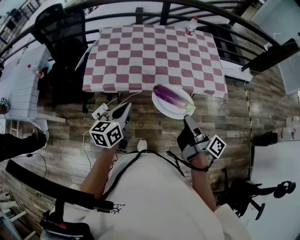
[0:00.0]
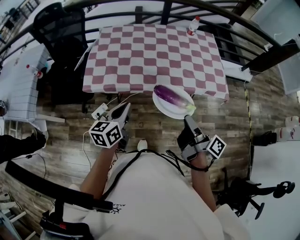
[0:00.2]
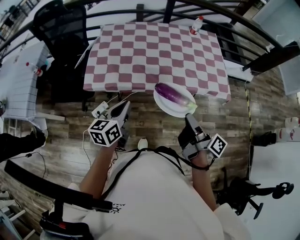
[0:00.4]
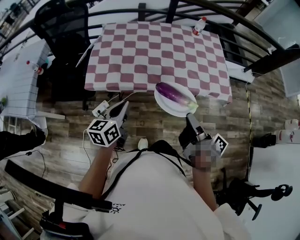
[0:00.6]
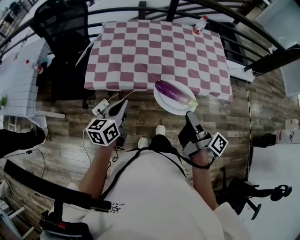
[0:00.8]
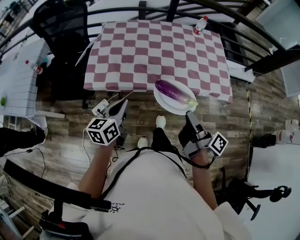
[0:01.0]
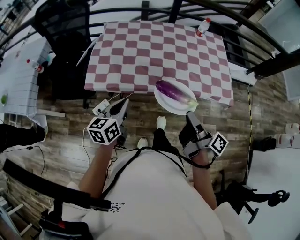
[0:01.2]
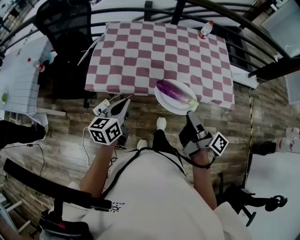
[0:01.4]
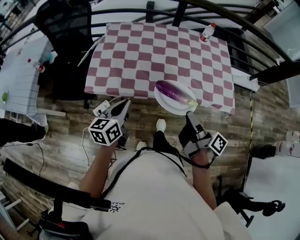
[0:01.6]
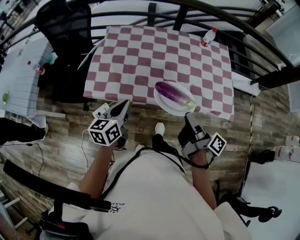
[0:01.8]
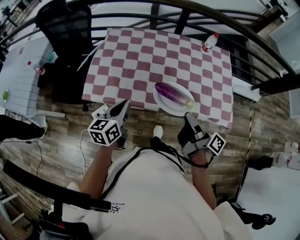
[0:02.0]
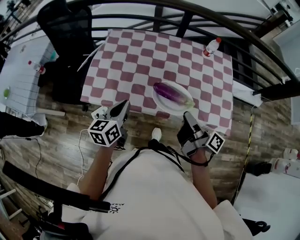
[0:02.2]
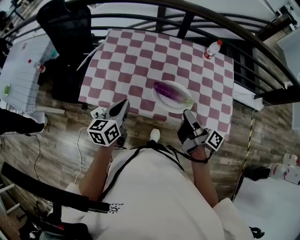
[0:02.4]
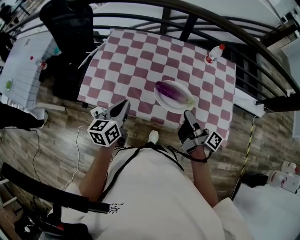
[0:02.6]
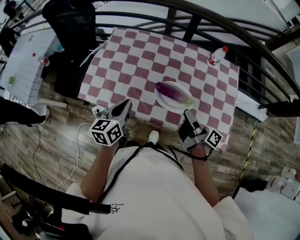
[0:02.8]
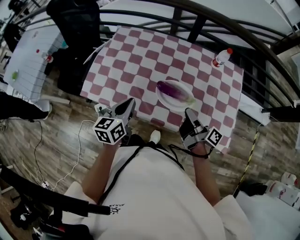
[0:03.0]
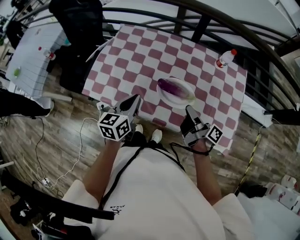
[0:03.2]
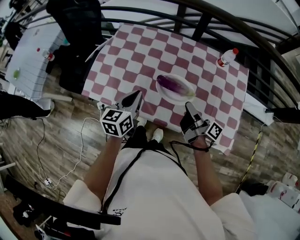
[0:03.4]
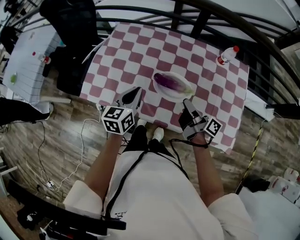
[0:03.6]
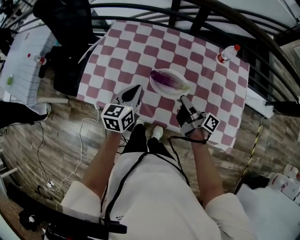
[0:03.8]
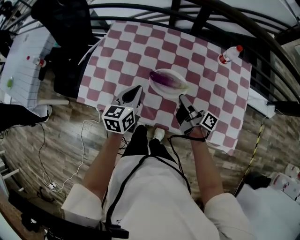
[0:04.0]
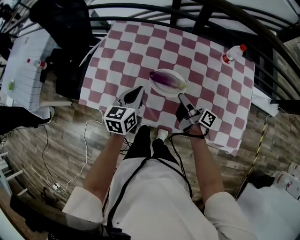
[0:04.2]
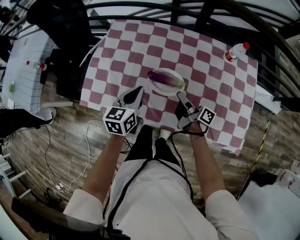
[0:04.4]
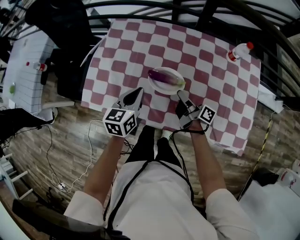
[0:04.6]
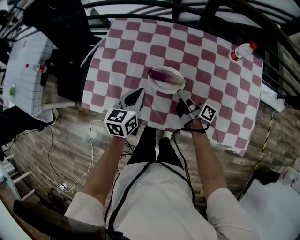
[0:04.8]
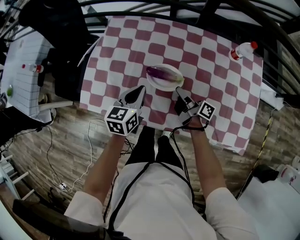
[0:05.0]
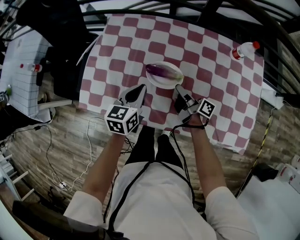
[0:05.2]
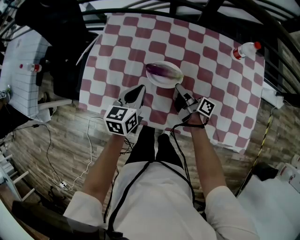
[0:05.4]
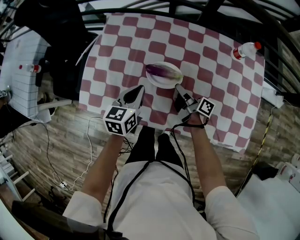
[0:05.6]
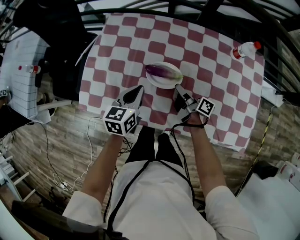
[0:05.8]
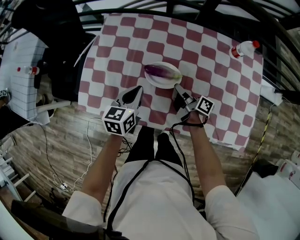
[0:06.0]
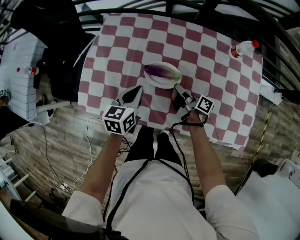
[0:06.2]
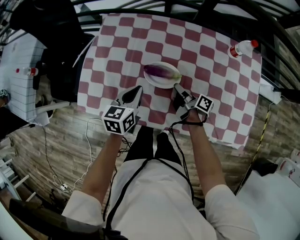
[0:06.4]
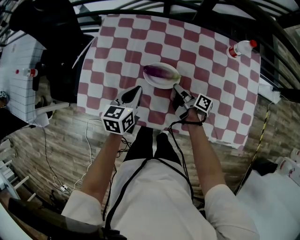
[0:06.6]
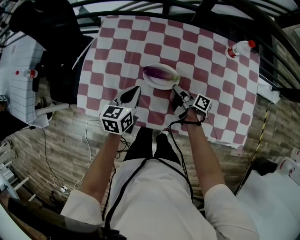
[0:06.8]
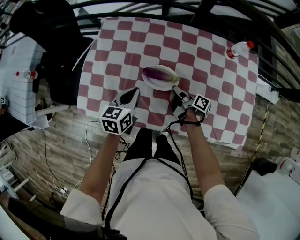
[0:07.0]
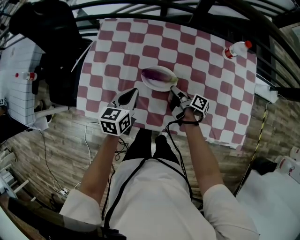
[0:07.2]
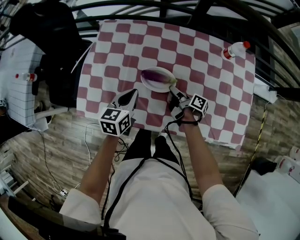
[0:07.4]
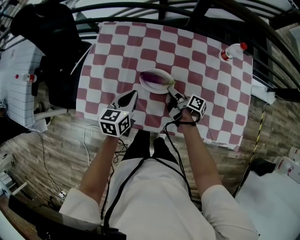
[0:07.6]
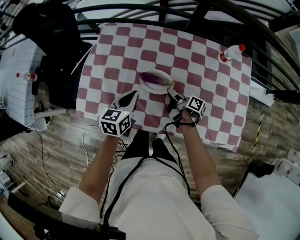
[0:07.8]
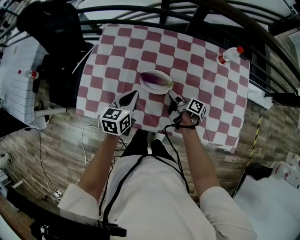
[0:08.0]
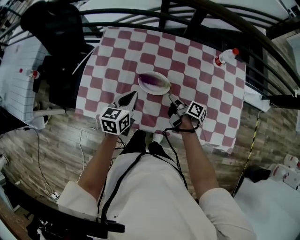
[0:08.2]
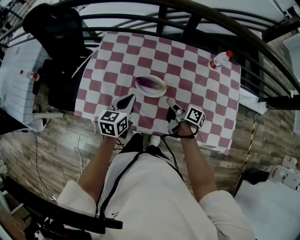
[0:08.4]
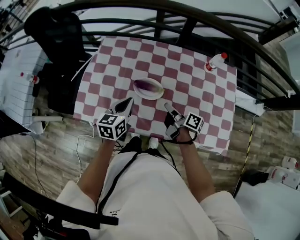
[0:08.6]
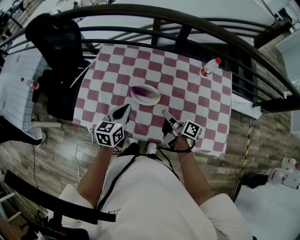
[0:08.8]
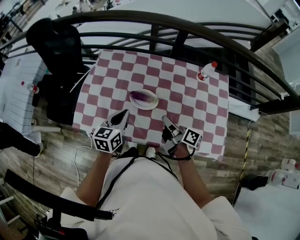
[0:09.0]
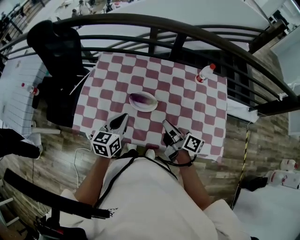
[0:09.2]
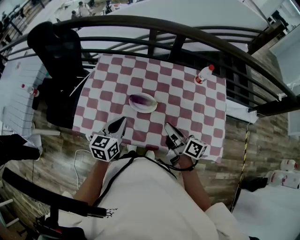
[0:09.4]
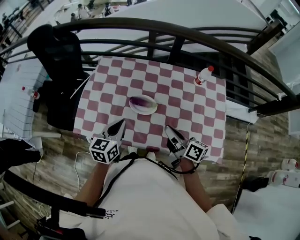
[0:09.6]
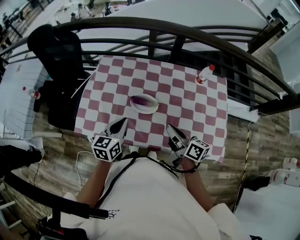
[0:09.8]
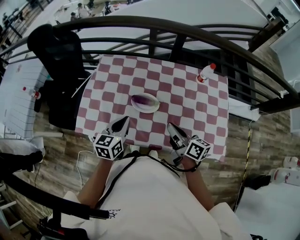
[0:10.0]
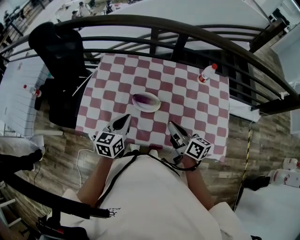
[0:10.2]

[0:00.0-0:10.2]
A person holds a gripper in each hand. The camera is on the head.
0:00.0 to 0:01.4: The left gripper changes place by some 10 cm.
0:01.4 to 0:03.0: The left gripper changes place by some 20 cm.
0:03.0 to 0:04.4: The left gripper shifts by roughly 15 cm.
0:04.4 to 0:05.8: The left gripper changes place by about 5 cm.
0:07.2 to 0:08.8: The left gripper is displaced upward by roughly 10 cm.

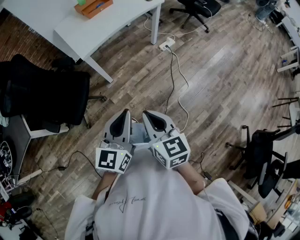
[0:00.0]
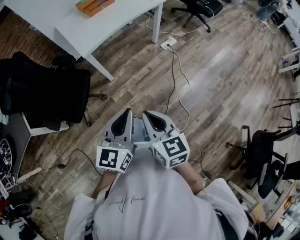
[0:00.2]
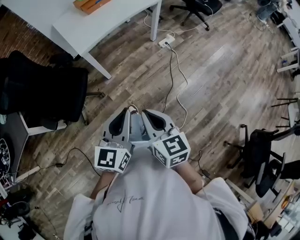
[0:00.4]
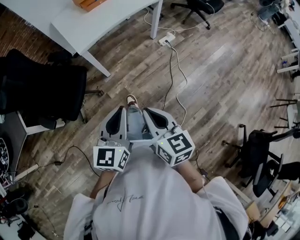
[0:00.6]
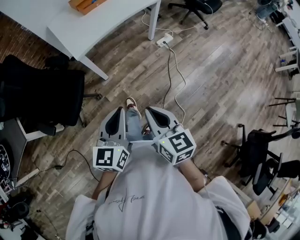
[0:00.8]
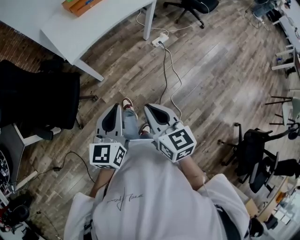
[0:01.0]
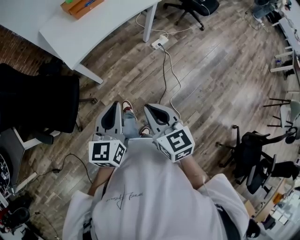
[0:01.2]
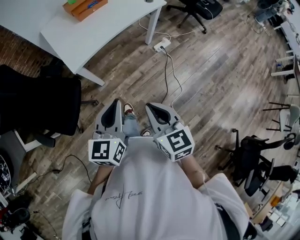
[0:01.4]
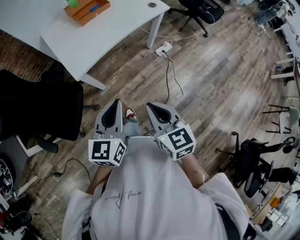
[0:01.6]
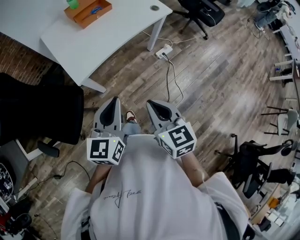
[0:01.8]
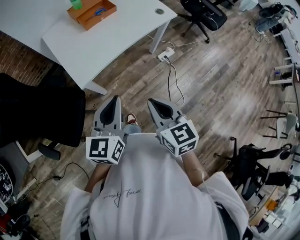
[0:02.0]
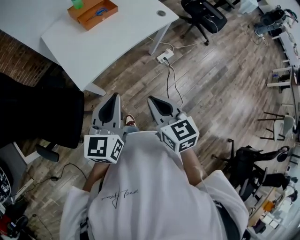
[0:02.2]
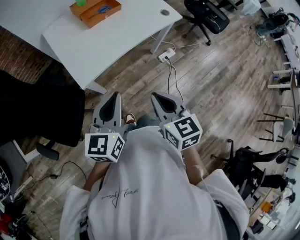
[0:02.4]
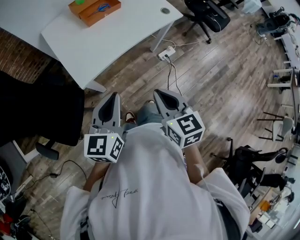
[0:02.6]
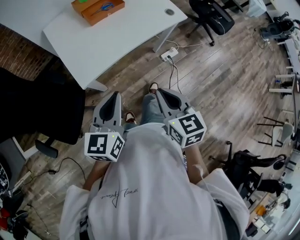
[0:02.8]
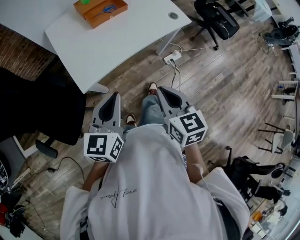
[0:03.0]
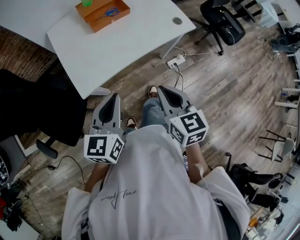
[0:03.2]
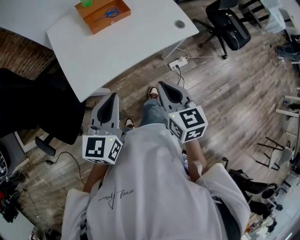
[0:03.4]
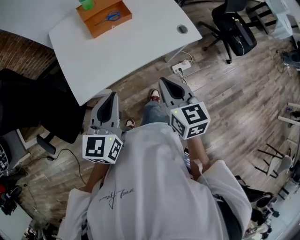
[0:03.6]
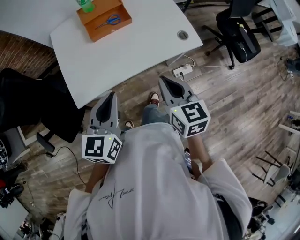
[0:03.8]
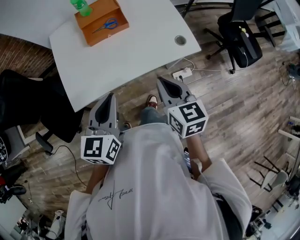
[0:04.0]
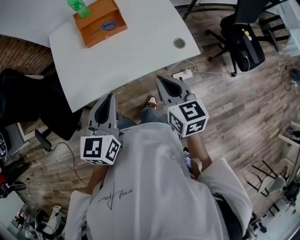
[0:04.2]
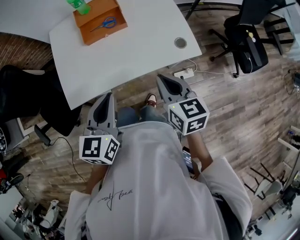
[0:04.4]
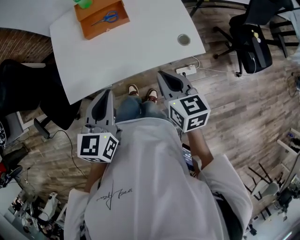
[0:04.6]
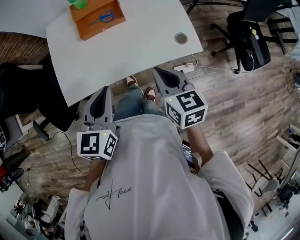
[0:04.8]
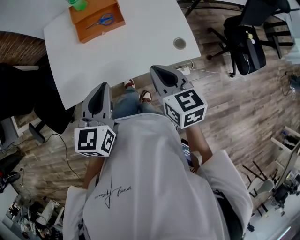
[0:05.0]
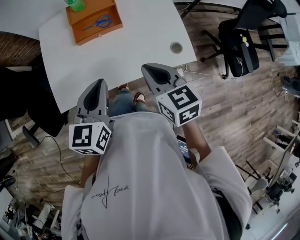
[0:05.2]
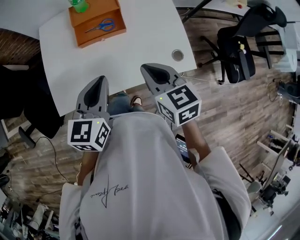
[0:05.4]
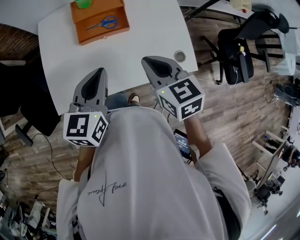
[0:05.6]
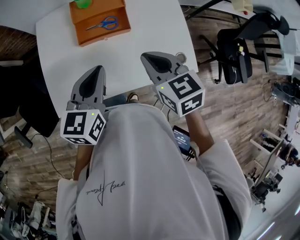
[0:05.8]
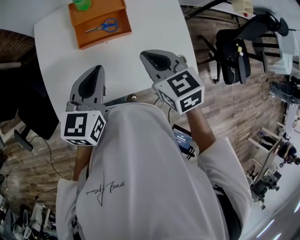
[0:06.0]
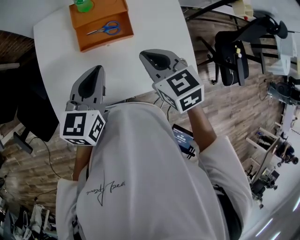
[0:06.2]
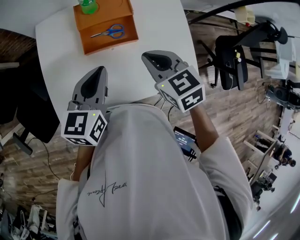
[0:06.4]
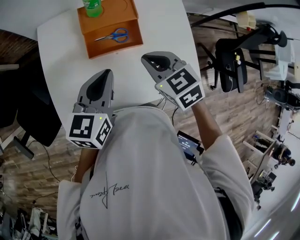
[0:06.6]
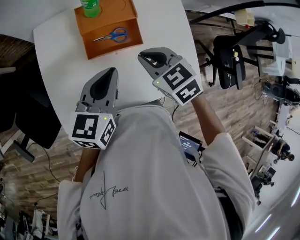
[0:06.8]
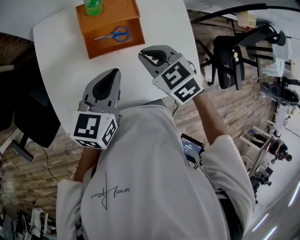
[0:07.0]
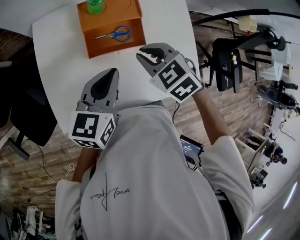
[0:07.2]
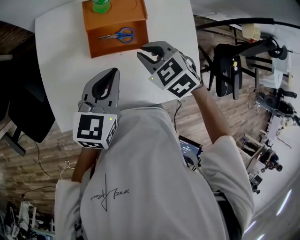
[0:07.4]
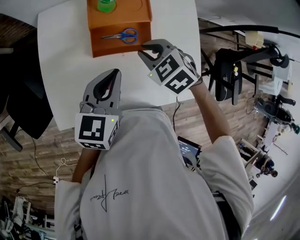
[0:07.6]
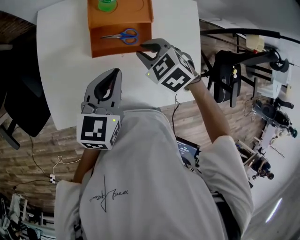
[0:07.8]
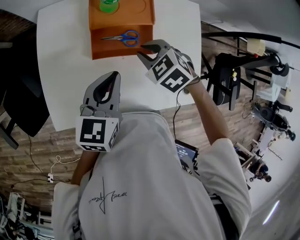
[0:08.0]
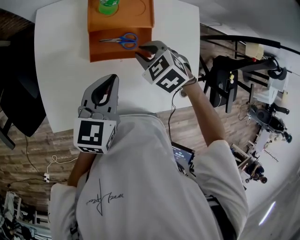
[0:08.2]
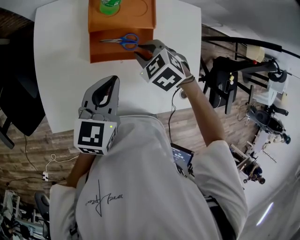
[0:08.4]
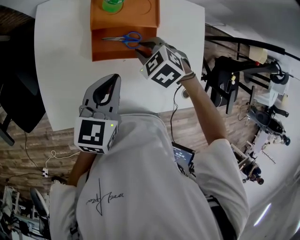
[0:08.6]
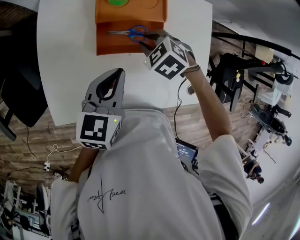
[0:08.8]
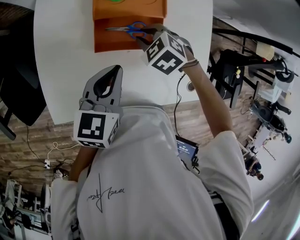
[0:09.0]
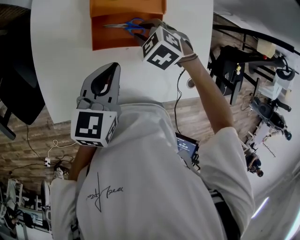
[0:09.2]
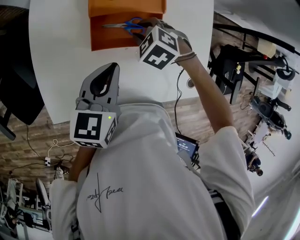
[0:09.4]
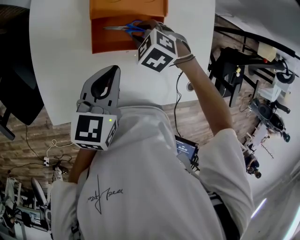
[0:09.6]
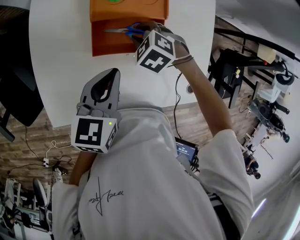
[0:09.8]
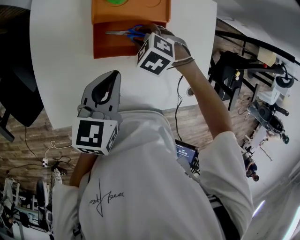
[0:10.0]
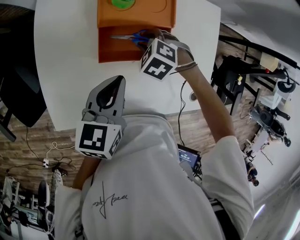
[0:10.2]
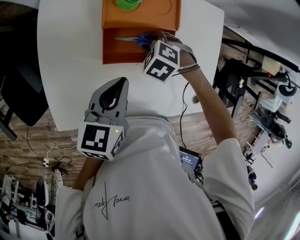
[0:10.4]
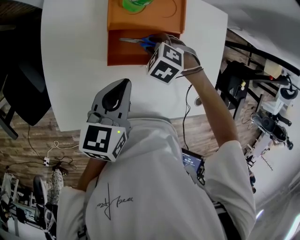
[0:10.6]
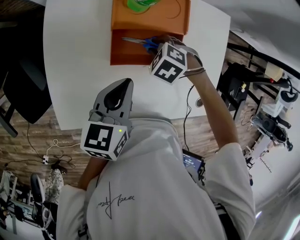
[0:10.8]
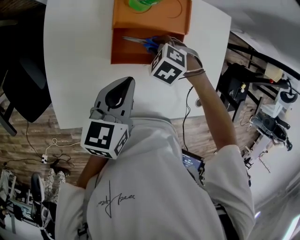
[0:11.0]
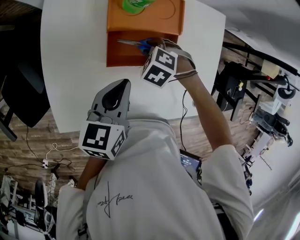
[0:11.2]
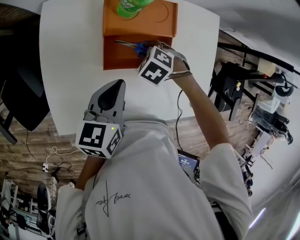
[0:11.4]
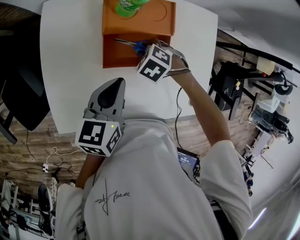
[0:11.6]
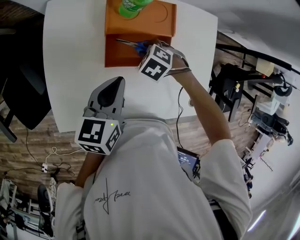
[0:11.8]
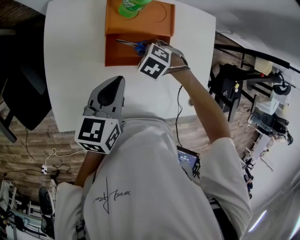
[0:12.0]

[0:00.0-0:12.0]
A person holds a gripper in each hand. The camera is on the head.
0:00.0 to 0:01.6: Both grippers move forward, some 25 cm.
0:01.6 to 0:03.0: Both grippers move forward, about 15 cm.
0:03.0 to 0:04.4: The grippers both shift forward and to the right by roughly 25 cm. The left gripper swivels approximately 20 degrees.
0:04.4 to 0:06.0: Both grippers travel together forward, about 20 cm. The right gripper swivels about 30 degrees.
0:06.0 to 0:07.6: The left gripper heads forward, covering approximately 5 cm, while the right gripper shifts some 15 cm forward, downward and to the left, and swivels about 40 degrees.
0:07.6 to 0:09.0: The right gripper goes approximately 10 cm downward and forward.
0:09.0 to 0:10.4: The right gripper travels downward by roughly 5 cm.
0:10.4 to 0:12.0: The grippers make only small movements.

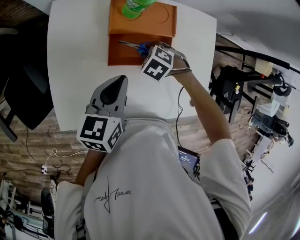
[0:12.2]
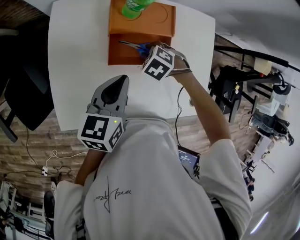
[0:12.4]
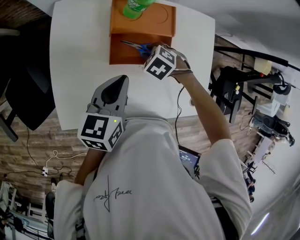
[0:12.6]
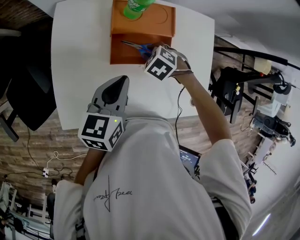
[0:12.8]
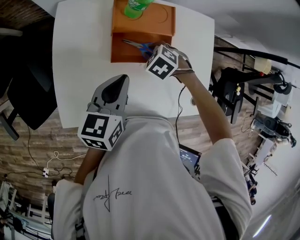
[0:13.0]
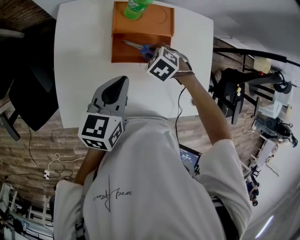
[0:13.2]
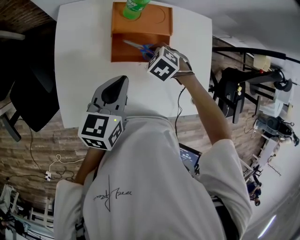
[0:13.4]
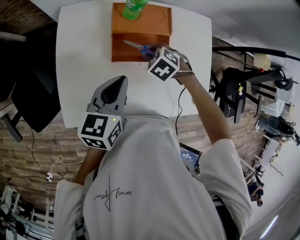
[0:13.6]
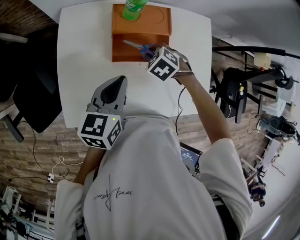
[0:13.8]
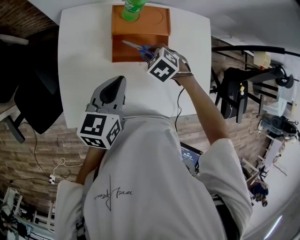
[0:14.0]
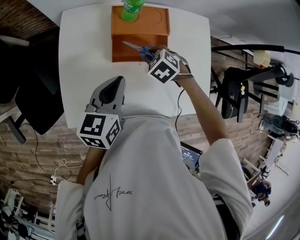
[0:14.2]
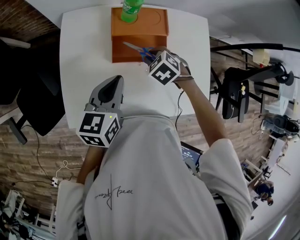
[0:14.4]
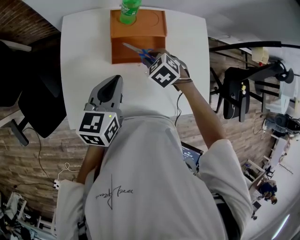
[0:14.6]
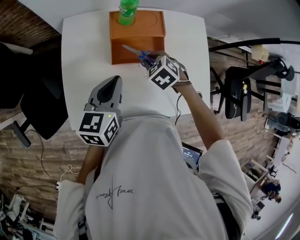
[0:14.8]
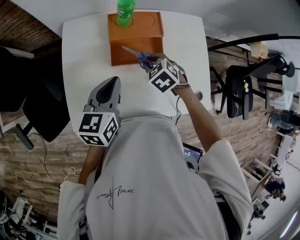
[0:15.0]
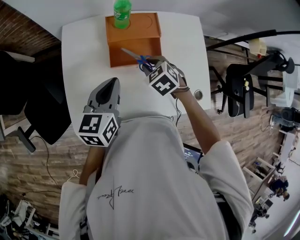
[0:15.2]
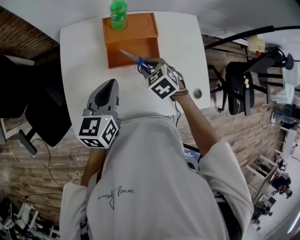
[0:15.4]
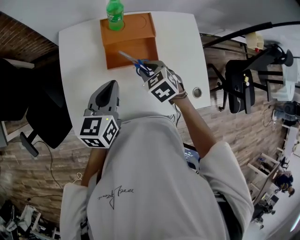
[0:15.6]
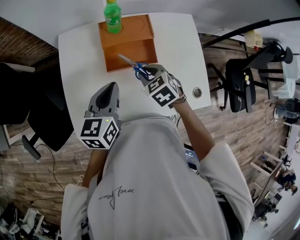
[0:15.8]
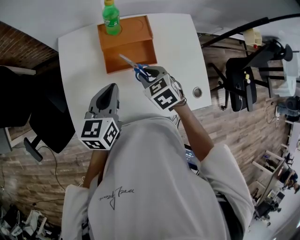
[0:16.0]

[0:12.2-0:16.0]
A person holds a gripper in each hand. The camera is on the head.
0:12.2 to 0:13.4: The grippers move only a little.
0:13.4 to 0:14.8: The right gripper shifts by about 5 cm.
0:14.8 to 0:16.0: The right gripper moves about 5 cm, and changes its angle by approximately 20 degrees.
